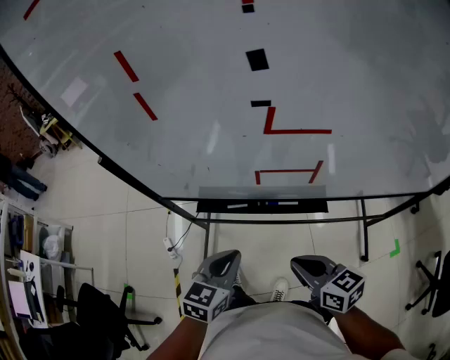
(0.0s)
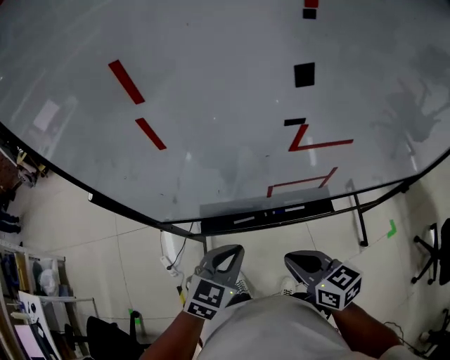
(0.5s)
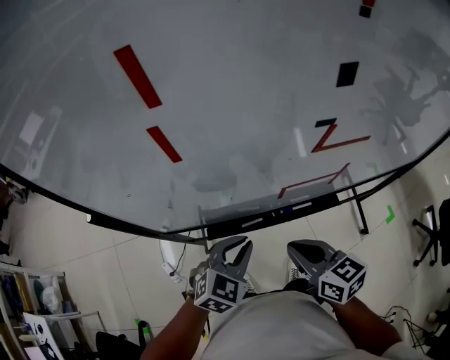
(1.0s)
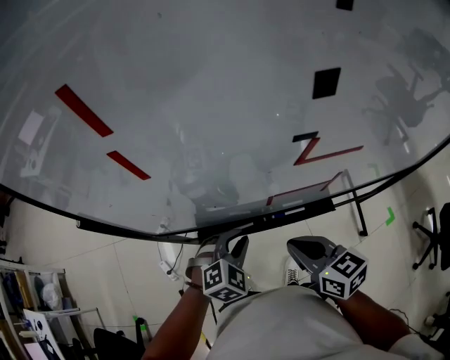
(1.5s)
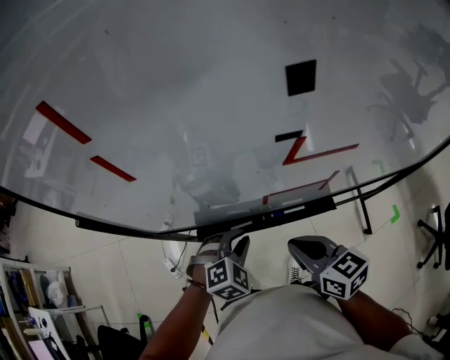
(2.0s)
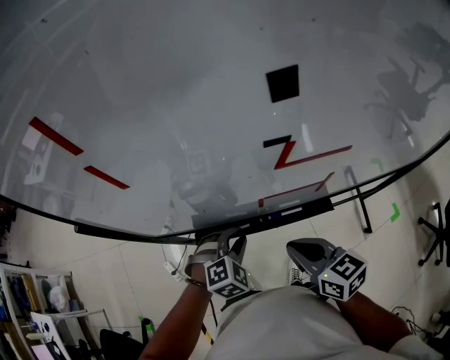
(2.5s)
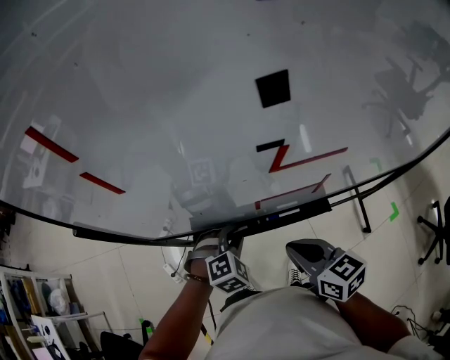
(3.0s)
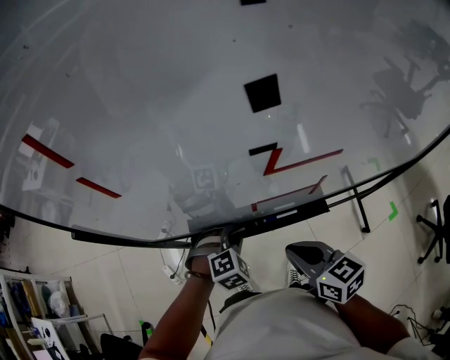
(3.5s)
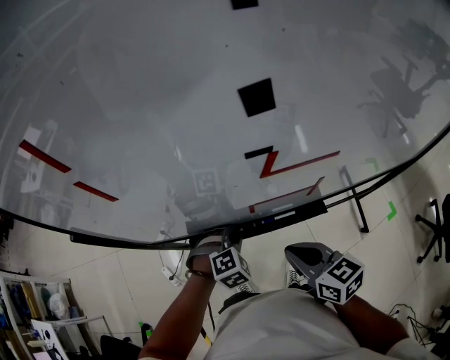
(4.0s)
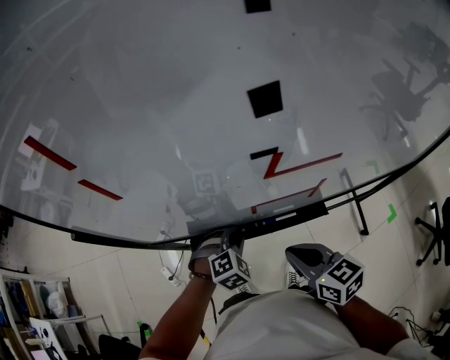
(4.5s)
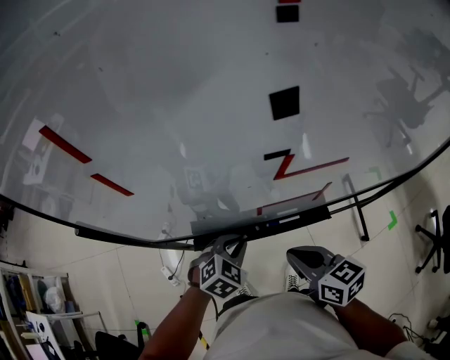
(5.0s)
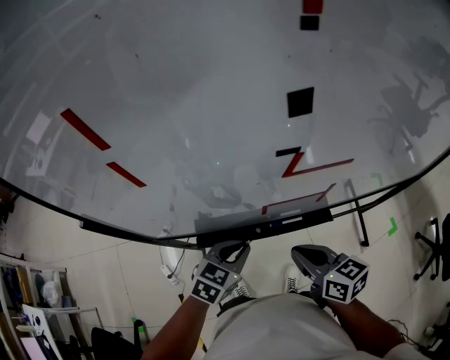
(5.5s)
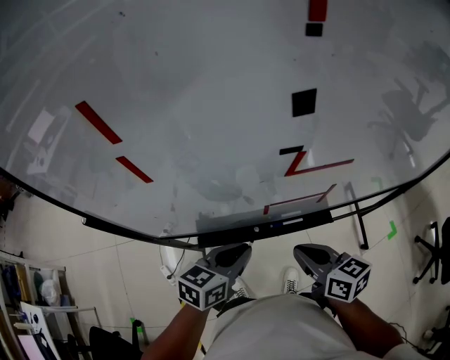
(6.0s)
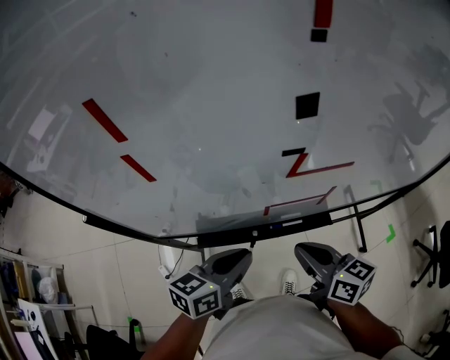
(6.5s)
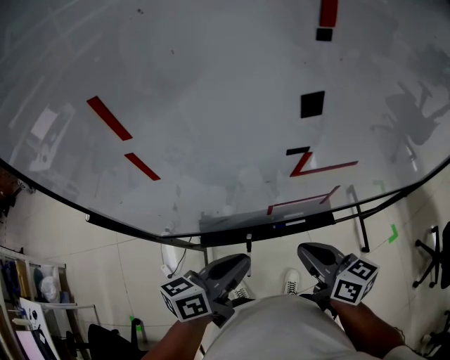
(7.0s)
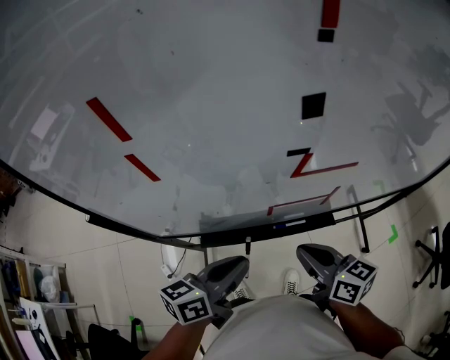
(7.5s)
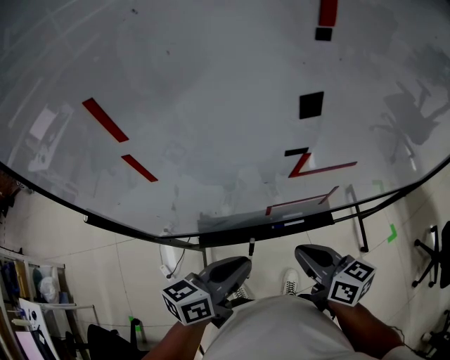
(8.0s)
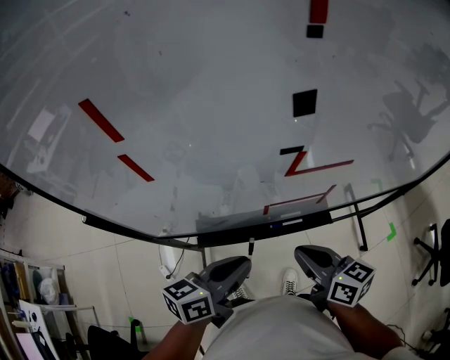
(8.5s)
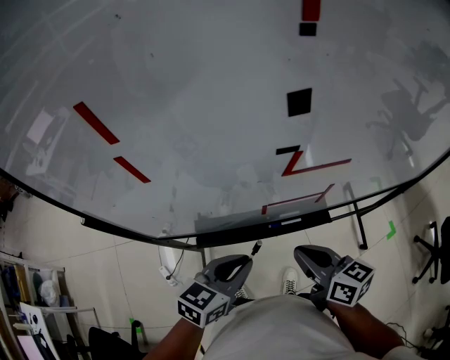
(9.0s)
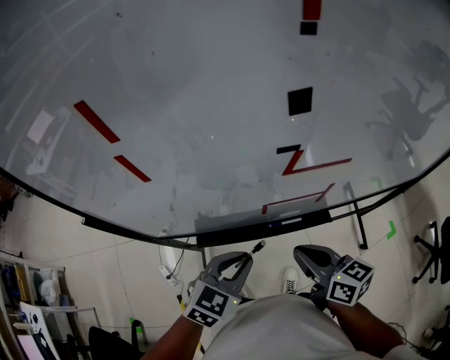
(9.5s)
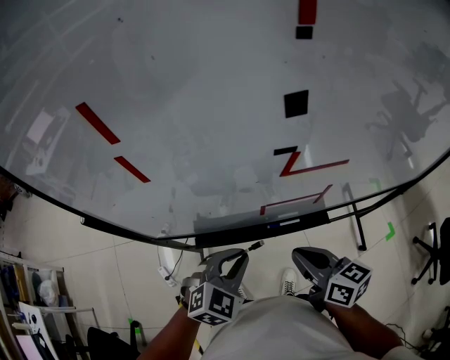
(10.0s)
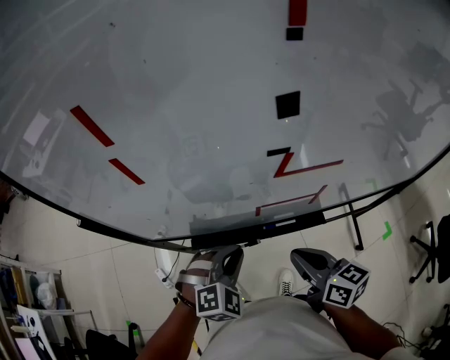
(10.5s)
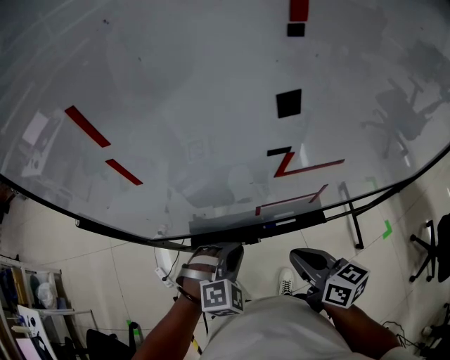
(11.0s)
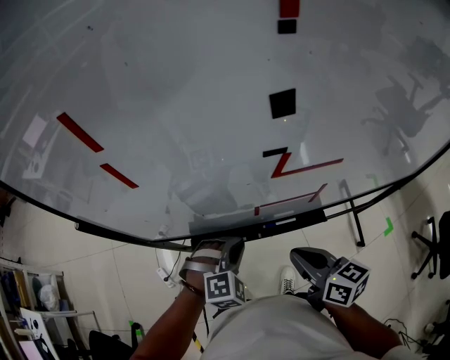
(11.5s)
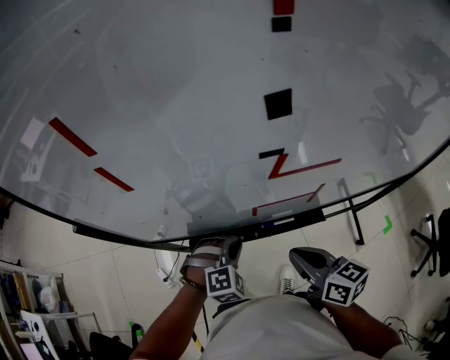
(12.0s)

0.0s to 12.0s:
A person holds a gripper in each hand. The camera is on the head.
0.0s to 2.0s: The left gripper heads forward and downward, covering about 15 cm, and rotates around the line of its fingers by roughly 50 degrees, clockwise from behind, while the right gripper heads forward and to the left, covering roughly 10 cm.
2.0s to 4.0s: The left gripper shifts by some 5 cm.
4.0s to 6.0s: The left gripper moves upward, about 15 cm, and rolls counterclockwise, seen from behind, by approximately 60 degrees.
6.0s to 8.0s: The left gripper heads upward, covering some 5 cm.
8.0s to 10.0s: The left gripper moves downward, some 5 cm, and rotates around the line of its fingers by about 60 degrees, clockwise from behind.
10.0s to 12.0s: The left gripper travels downward by approximately 10 cm, and swivels some 30 degrees.

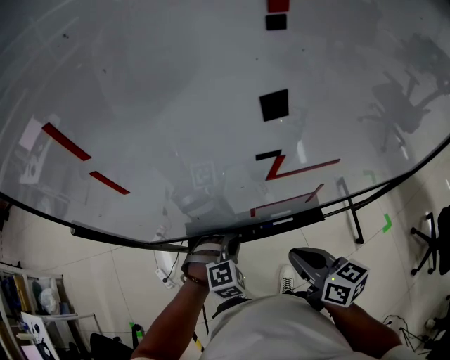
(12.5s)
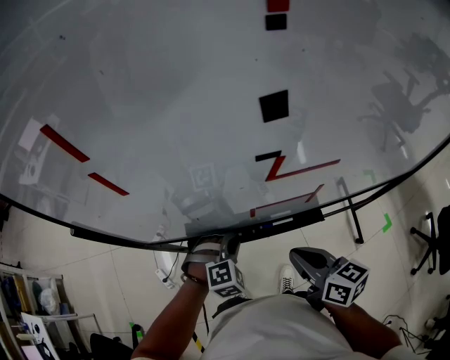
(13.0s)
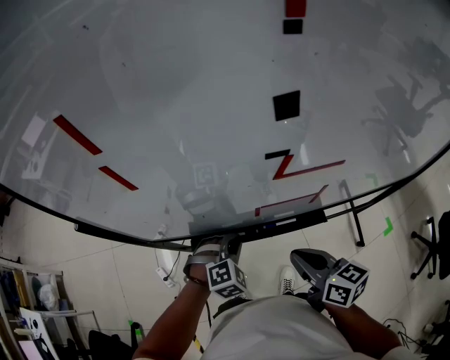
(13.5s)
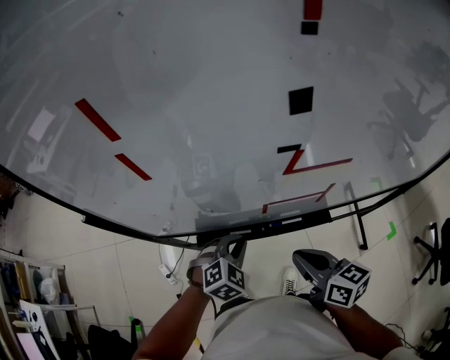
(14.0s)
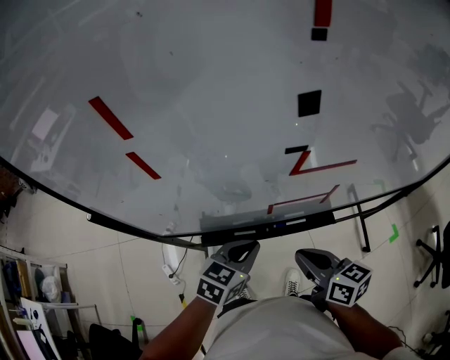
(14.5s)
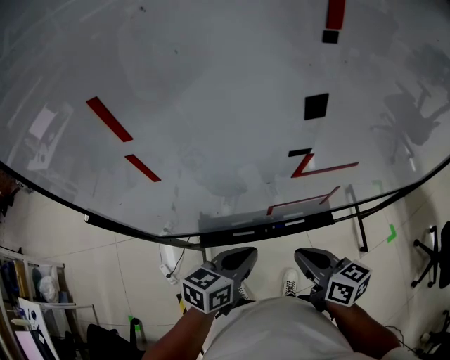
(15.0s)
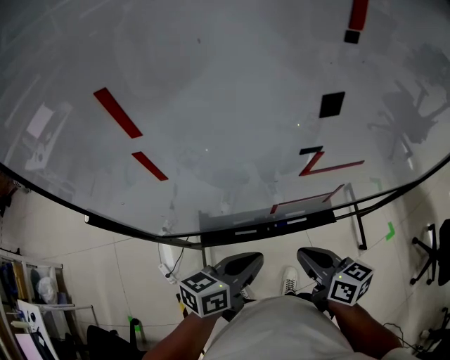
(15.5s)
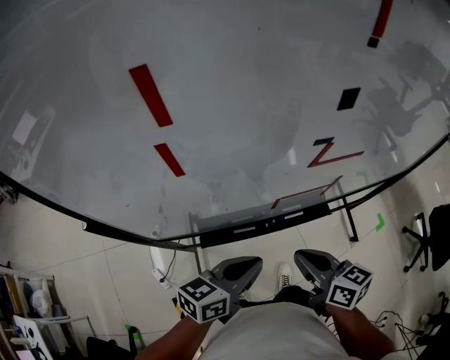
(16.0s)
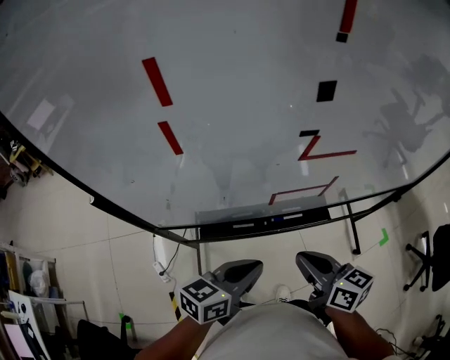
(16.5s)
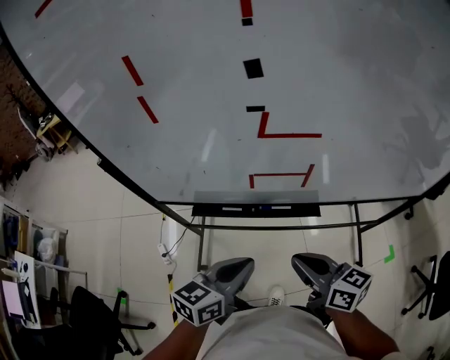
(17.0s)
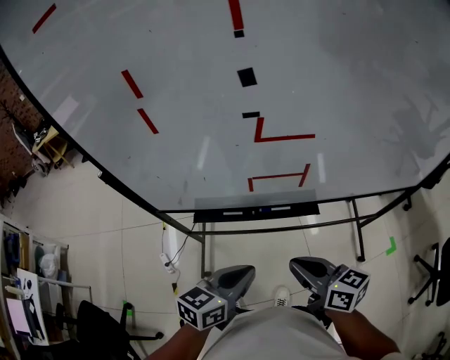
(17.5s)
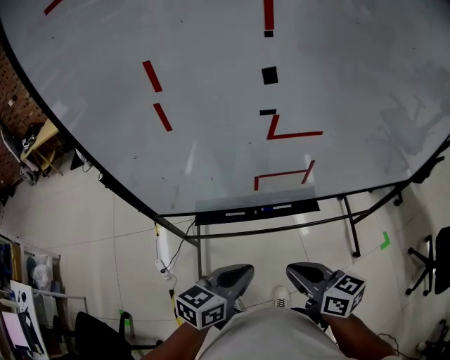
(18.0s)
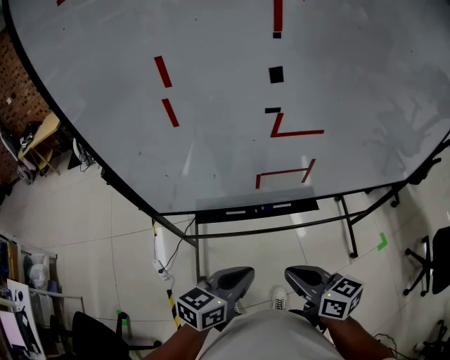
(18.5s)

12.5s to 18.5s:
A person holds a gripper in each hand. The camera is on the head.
12.5s to 14.5s: The left gripper goes approximately 10 cm upward, and rotates around the line of its fingers by about 60 degrees, counterclockwise from behind.
14.5s to 16.5s: The left gripper heads backward and upward, covering about 10 cm, and swivels roughly 20 degrees.
16.5s to 18.5s: The grippers both shift backward by roughly 10 cm.

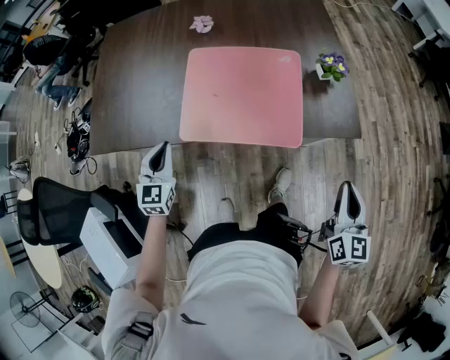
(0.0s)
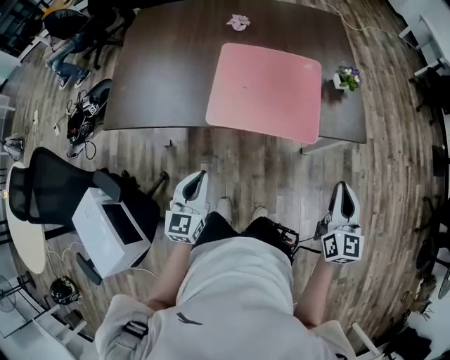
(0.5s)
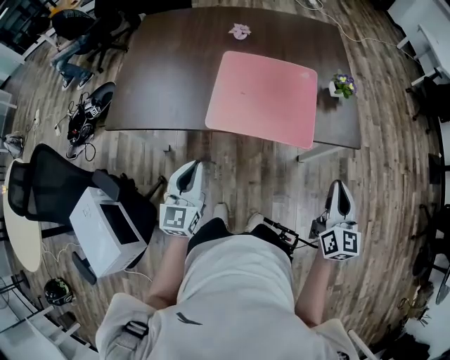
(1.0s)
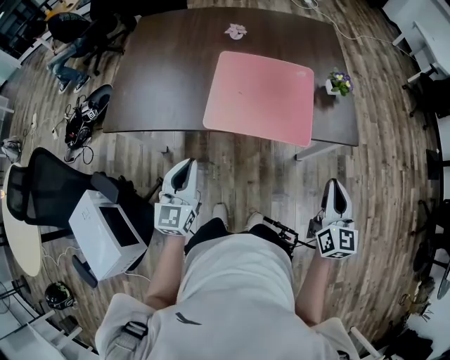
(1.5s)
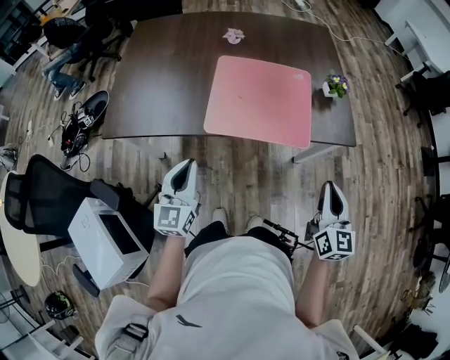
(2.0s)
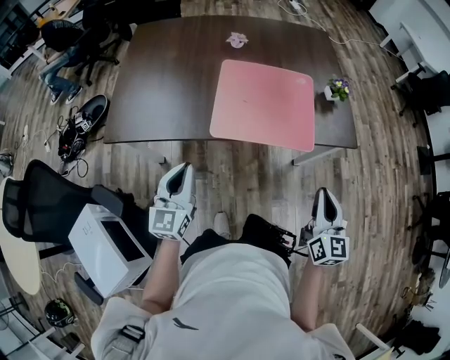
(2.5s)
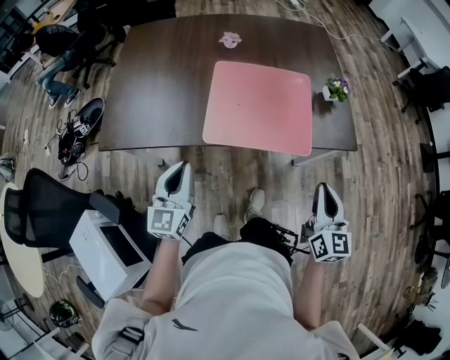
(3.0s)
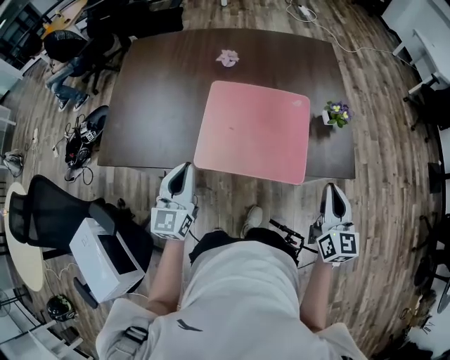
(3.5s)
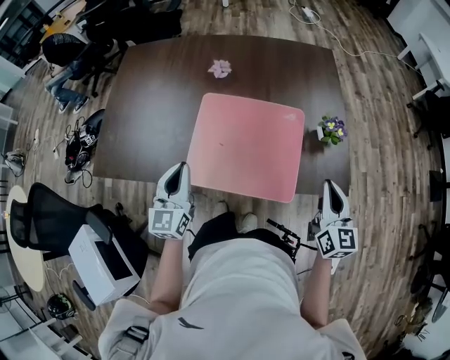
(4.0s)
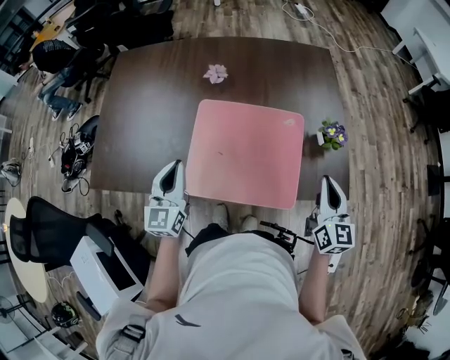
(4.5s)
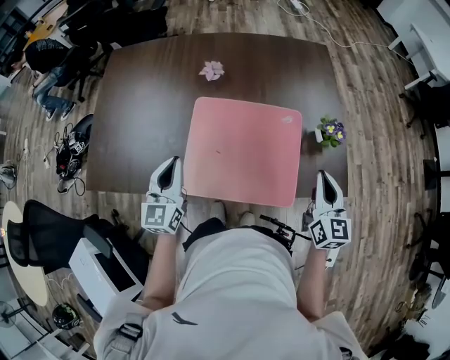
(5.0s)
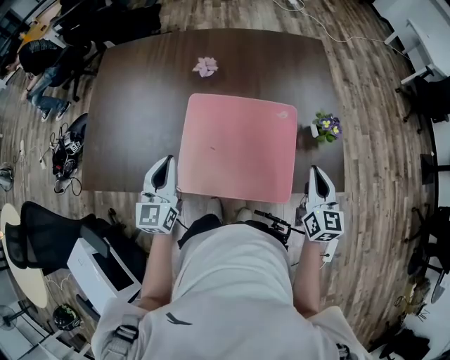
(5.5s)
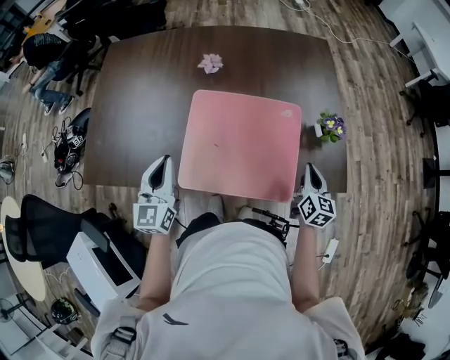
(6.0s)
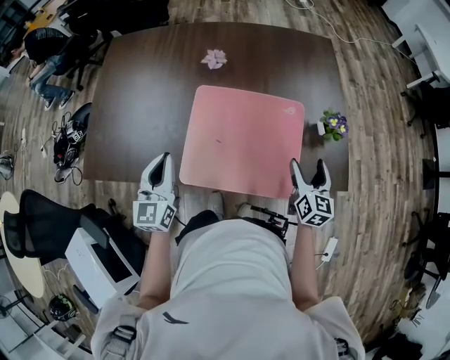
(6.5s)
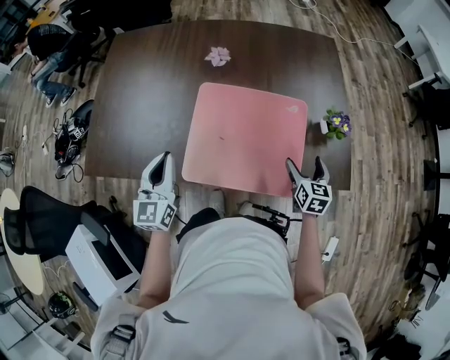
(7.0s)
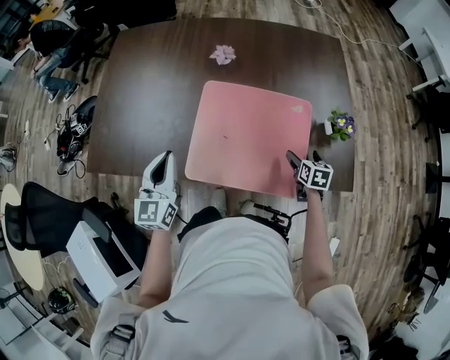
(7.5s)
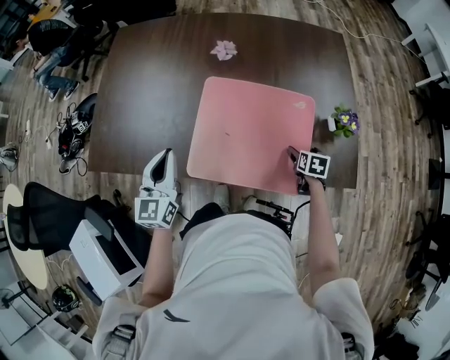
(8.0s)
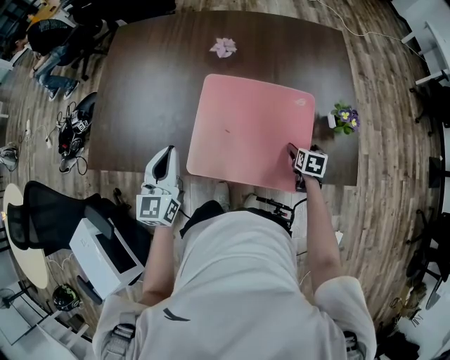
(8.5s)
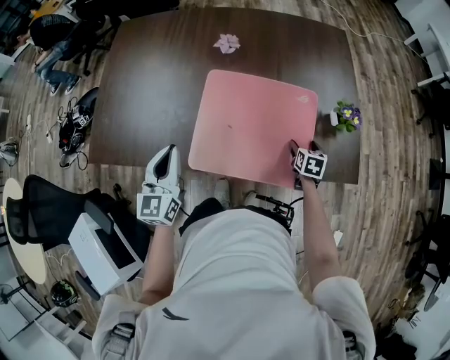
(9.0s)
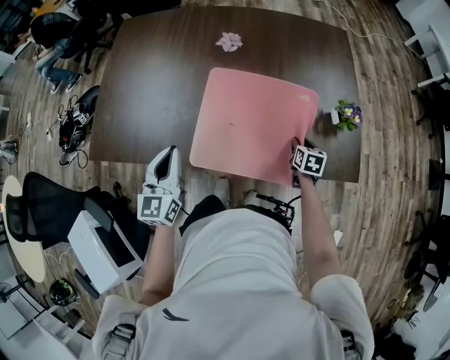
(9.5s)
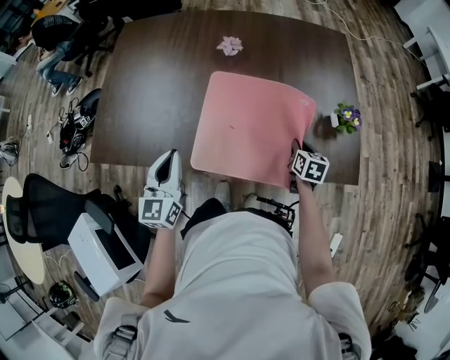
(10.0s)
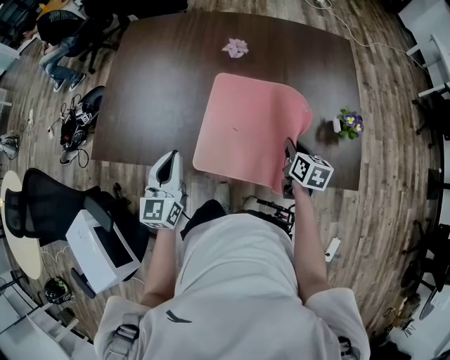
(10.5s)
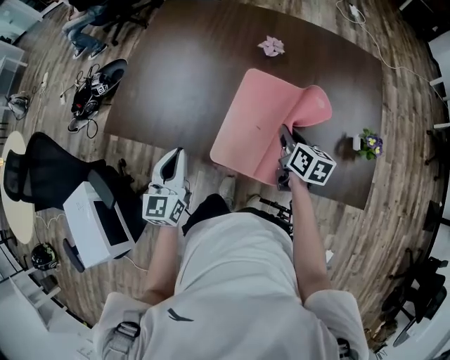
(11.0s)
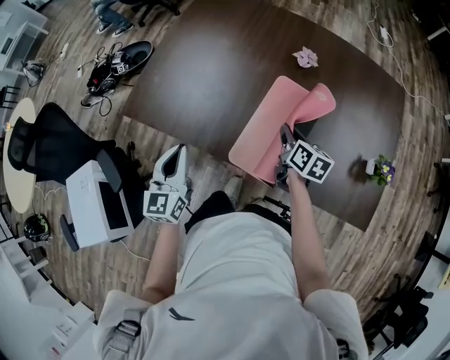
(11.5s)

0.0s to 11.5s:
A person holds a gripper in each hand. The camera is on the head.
0.0s to 2.0s: The left gripper moves backward and upward, approximately 15 cm. Meanwhile the right gripper shifts about 15 cm to the left and backward.
2.0s to 4.0s: The two grippers go roughly 20 cm forward.
4.0s to 6.0s: The right gripper shifts roughly 15 cm downward and forward, while the left gripper shifts by roughly 5 cm.
6.0s to 7.5s: The right gripper shifts approximately 10 cm downward, rotates roughly 30 degrees, and opens up.
7.5s to 9.5s: The right gripper closes up.
9.5s to 11.5s: The right gripper ends up approximately 30 cm from where it was, and swivels about 30 degrees. The left gripper ends up approximately 15 cm from where it was.
